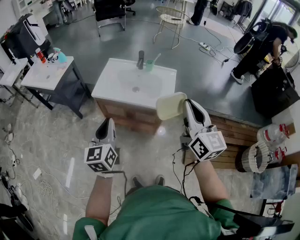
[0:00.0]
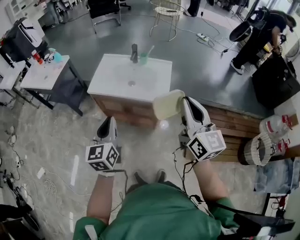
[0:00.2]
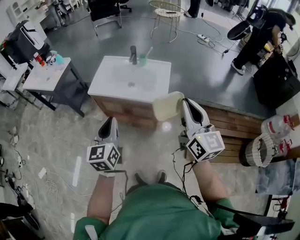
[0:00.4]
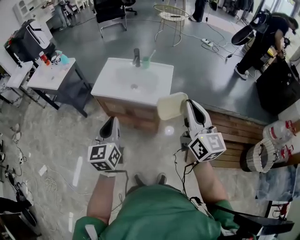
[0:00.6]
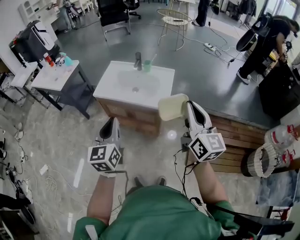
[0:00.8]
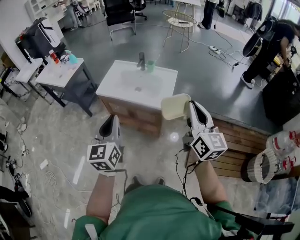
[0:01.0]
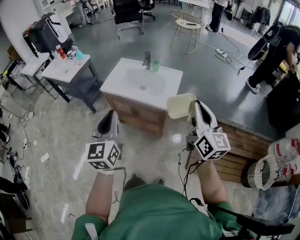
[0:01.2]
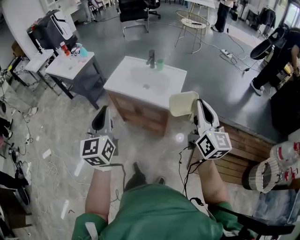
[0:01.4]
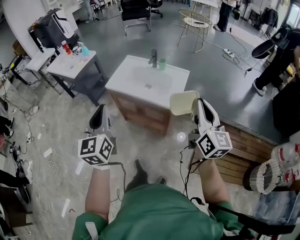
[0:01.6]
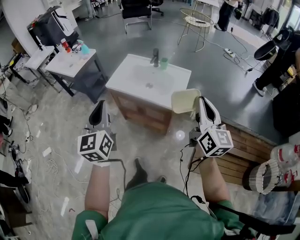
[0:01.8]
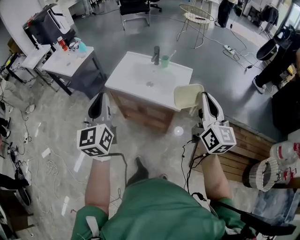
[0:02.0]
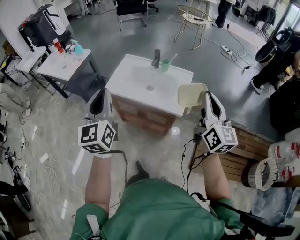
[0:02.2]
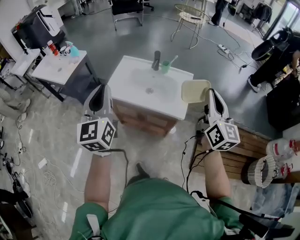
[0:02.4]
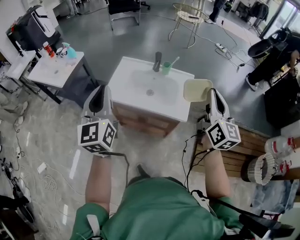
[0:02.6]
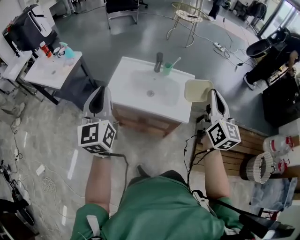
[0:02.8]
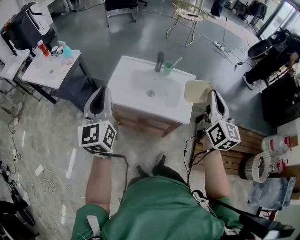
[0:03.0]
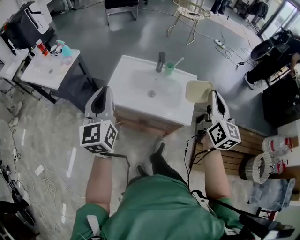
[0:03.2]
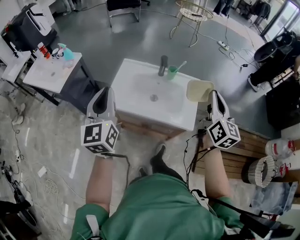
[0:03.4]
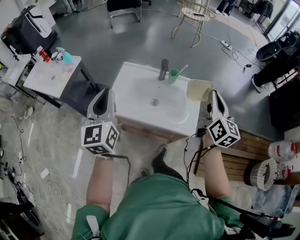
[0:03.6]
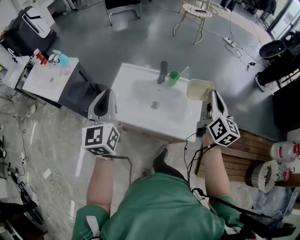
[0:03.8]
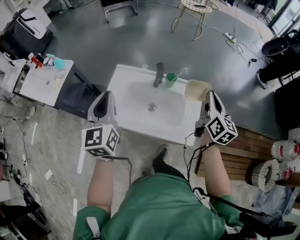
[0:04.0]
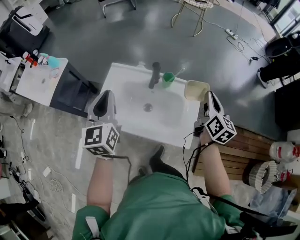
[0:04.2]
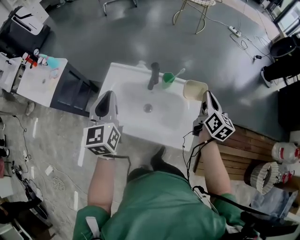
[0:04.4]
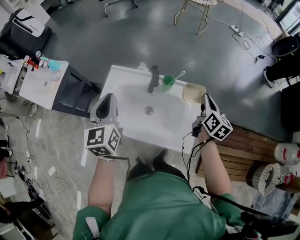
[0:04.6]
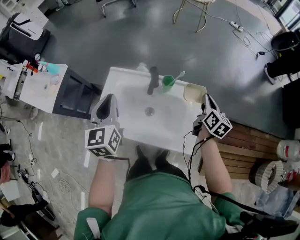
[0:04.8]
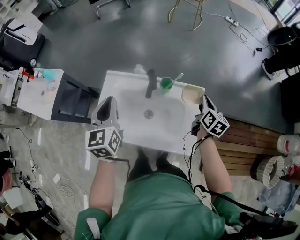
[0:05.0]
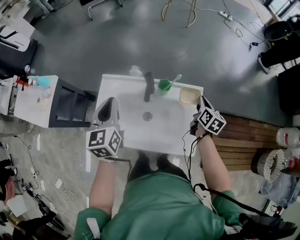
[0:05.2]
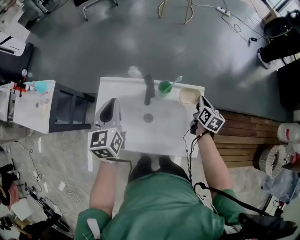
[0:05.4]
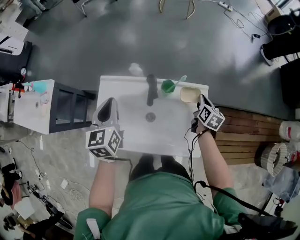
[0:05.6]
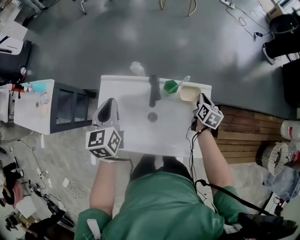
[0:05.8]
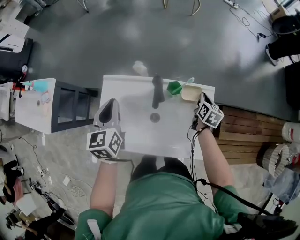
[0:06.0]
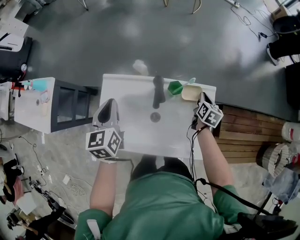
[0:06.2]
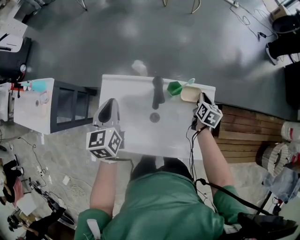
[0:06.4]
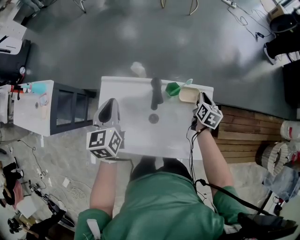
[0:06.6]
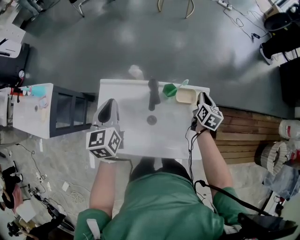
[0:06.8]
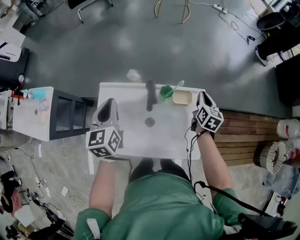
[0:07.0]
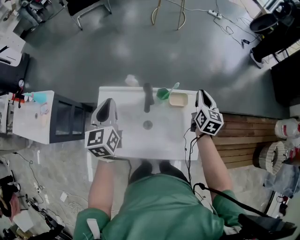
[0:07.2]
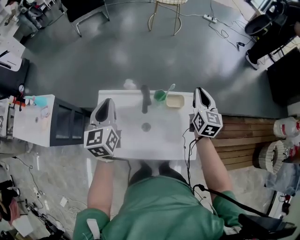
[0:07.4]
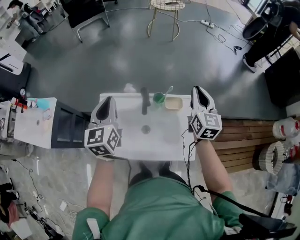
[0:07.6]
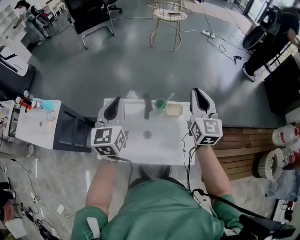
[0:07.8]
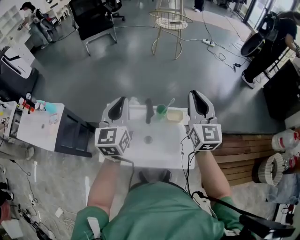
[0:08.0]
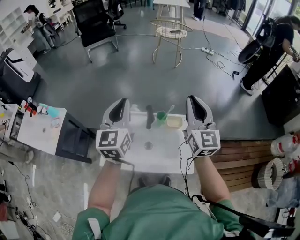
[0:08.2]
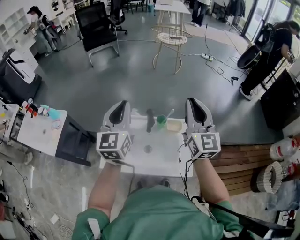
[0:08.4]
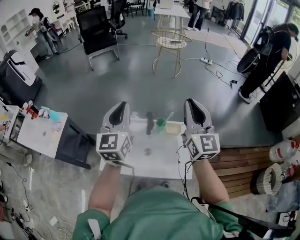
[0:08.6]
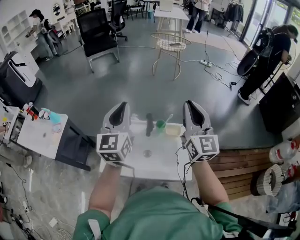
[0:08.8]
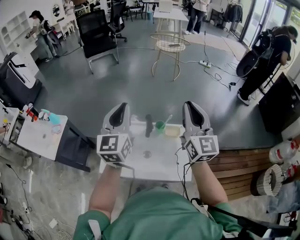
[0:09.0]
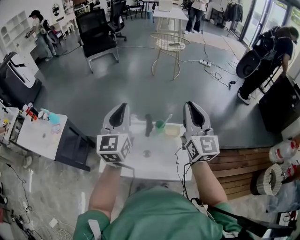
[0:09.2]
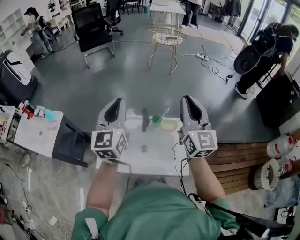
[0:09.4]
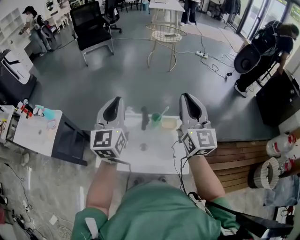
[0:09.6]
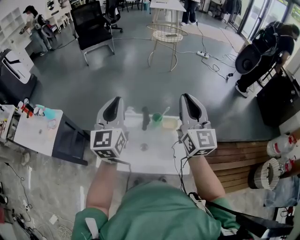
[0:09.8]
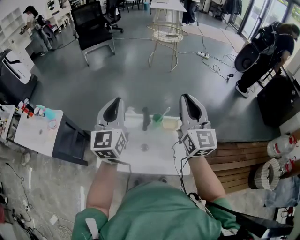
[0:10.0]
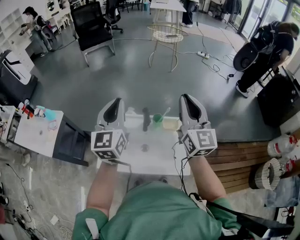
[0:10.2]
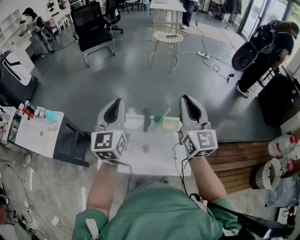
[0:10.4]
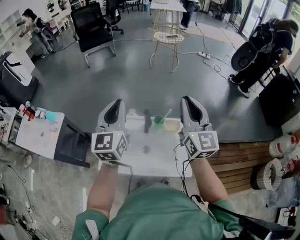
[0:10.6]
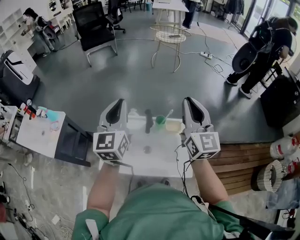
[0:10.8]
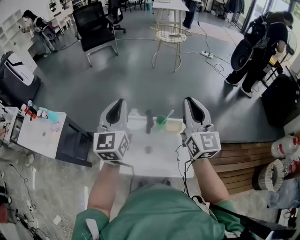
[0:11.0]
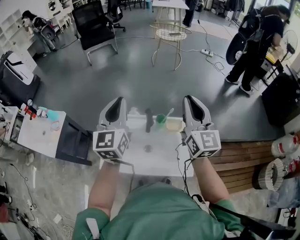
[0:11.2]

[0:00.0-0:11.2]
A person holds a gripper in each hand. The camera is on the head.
0:00.0 to 0:01.6: The right gripper heads to the right, covering approximately 15 cm. Meanwhile the left gripper goes about 15 cm upward, to the right and backward.
0:01.6 to 0:03.2: The two grippers go approximately 30 cm forward and to the left.
0:03.2 to 0:04.8: The left gripper is displaced forward by approximately 30 cm. The right gripper heads forward and downward, covering approximately 40 cm, and turns by about 30 degrees.
0:04.8 to 0:06.4: The left gripper travels forward and downward by approximately 15 cm; the right gripper heads downward and forward, covering approximately 20 cm, and swivels roughly 20 degrees.
0:06.4 to 0:08.0: The right gripper goes some 40 cm upward, and angles its fingers upward, by roughly 50 degrees. The left gripper travels upward by some 20 cm, and turns by approximately 30 degrees.
0:08.0 to 0:09.6: The grippers both shift upward by some 5 cm.
0:09.6 to 0:11.2: There are only small adjustments of the grippers.

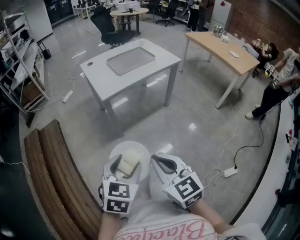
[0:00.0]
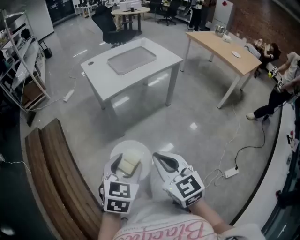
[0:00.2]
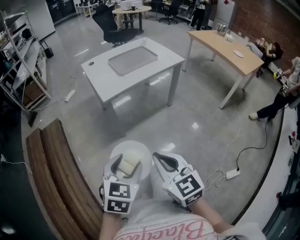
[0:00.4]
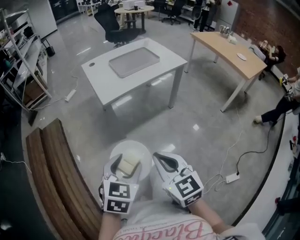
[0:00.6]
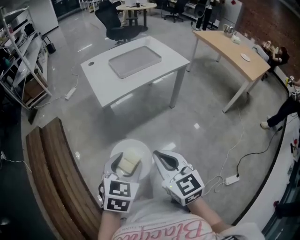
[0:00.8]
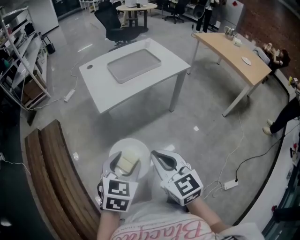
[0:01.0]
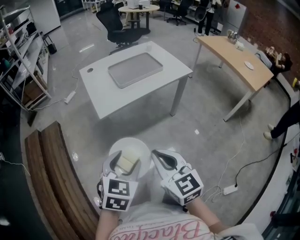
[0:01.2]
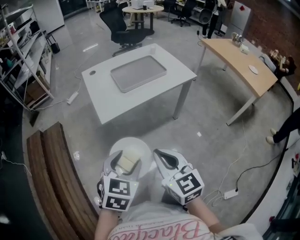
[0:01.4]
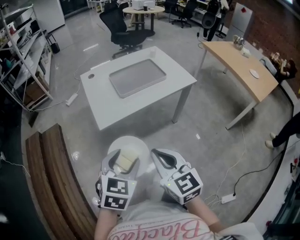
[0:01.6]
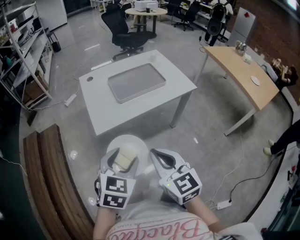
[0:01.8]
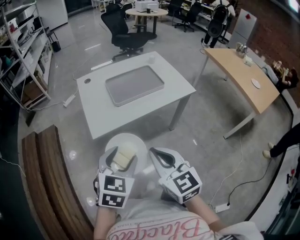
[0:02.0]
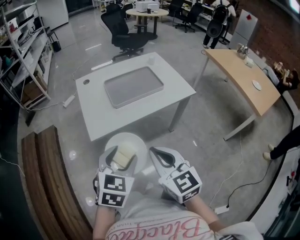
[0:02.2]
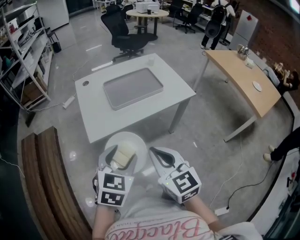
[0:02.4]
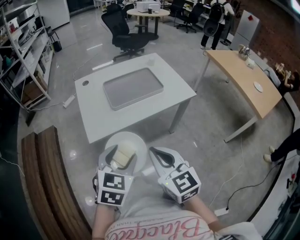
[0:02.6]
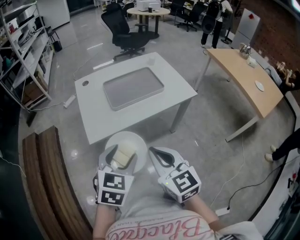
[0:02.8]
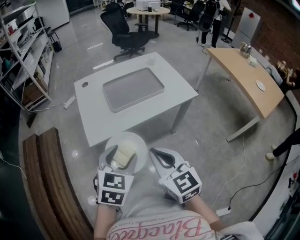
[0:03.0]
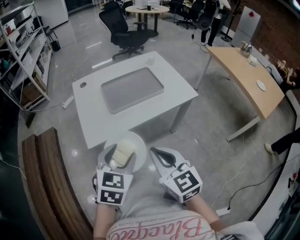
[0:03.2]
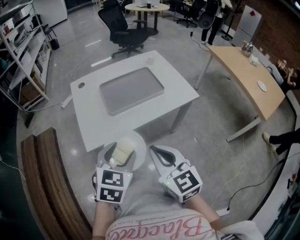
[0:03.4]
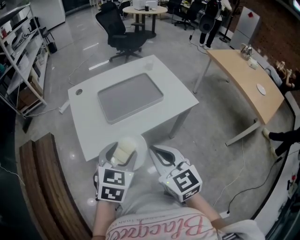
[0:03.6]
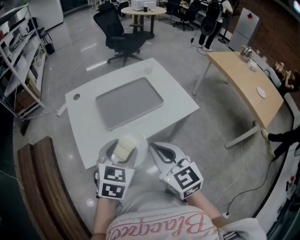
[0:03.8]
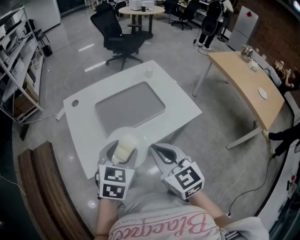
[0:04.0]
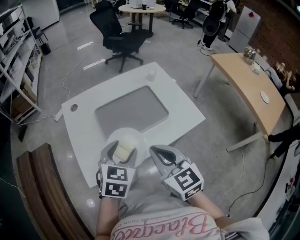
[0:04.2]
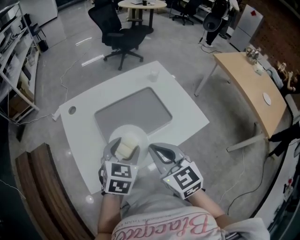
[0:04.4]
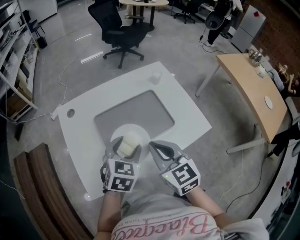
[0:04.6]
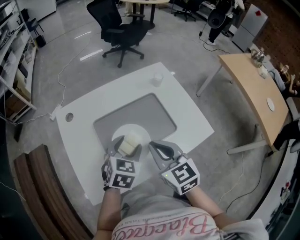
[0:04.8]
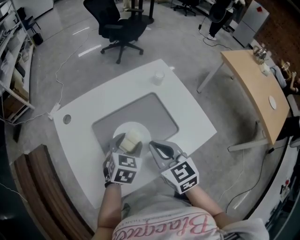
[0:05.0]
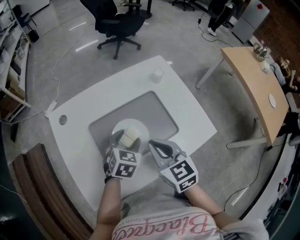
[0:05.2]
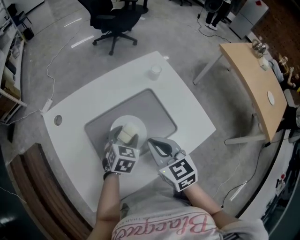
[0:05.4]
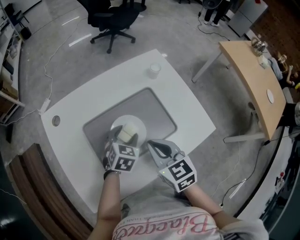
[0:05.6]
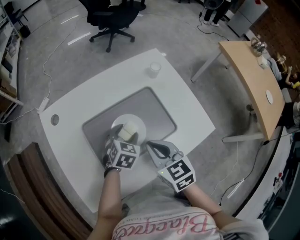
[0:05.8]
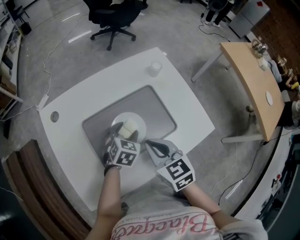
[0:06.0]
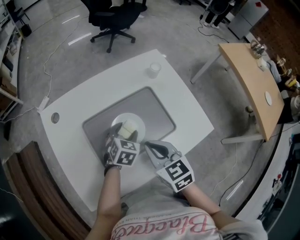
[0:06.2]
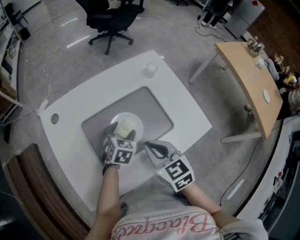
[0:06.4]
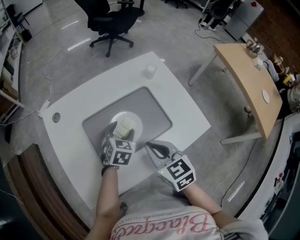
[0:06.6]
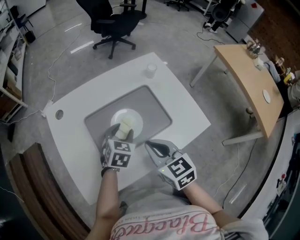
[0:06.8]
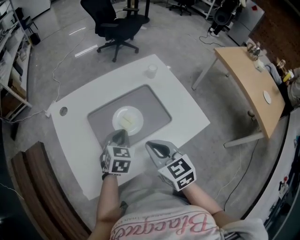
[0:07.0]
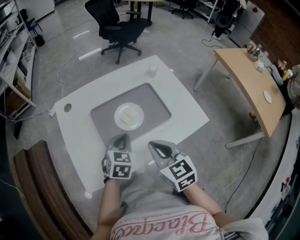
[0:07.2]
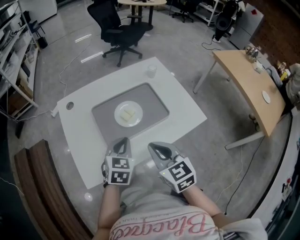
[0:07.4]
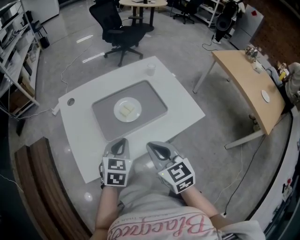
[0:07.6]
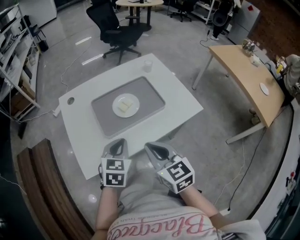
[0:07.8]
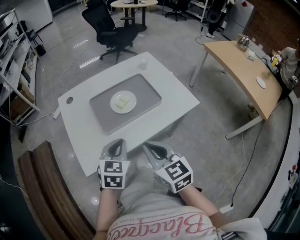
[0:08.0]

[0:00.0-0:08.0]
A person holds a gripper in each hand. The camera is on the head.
0:00.0 to 0:01.6: Both grippers travel together forward, approximately 20 cm.
0:01.6 to 0:03.2: The grippers both shift forward and to the right by roughly 10 cm.
0:03.2 to 0:04.8: Both grippers travel together forward, about 25 cm.
0:04.8 to 0:06.4: The right gripper is displaced downward by approximately 5 cm. Meanwhile the left gripper heads downward and forward, covering about 15 cm.
0:06.4 to 0:08.0: The left gripper heads backward and upward, covering about 25 cm, and closes its fingers; the right gripper is displaced backward by roughly 15 cm.

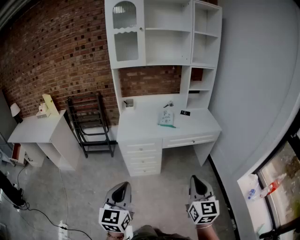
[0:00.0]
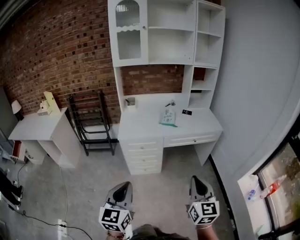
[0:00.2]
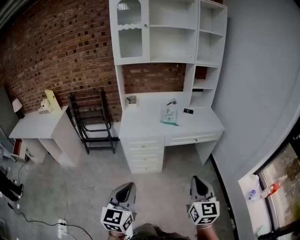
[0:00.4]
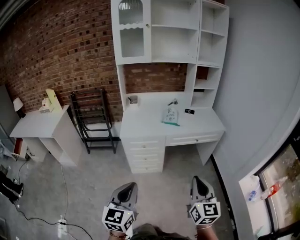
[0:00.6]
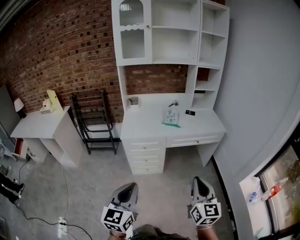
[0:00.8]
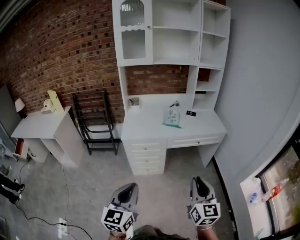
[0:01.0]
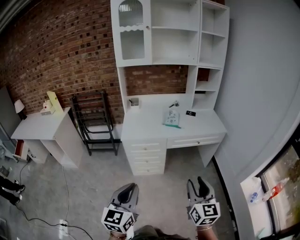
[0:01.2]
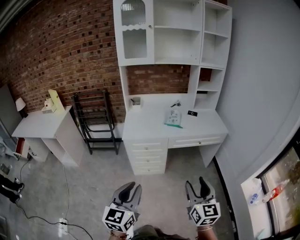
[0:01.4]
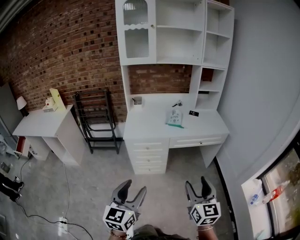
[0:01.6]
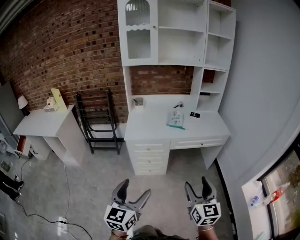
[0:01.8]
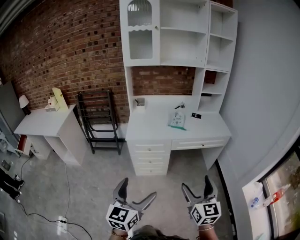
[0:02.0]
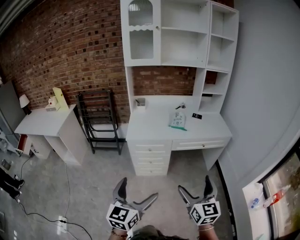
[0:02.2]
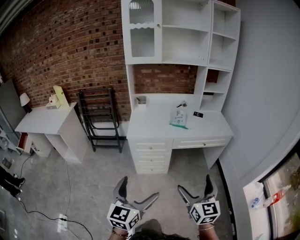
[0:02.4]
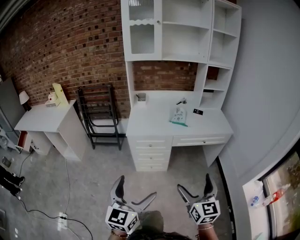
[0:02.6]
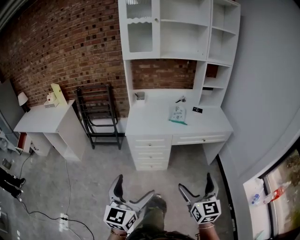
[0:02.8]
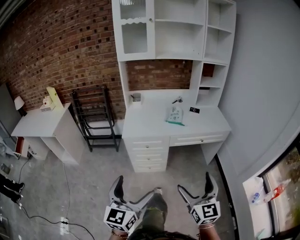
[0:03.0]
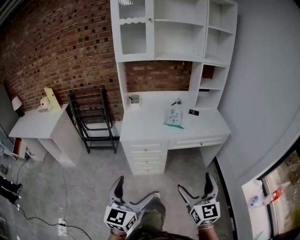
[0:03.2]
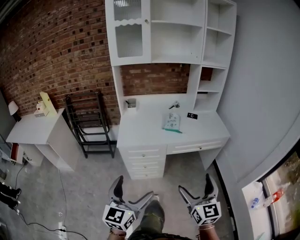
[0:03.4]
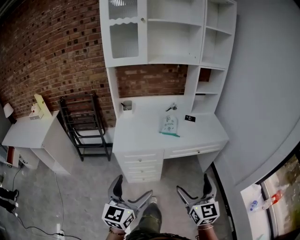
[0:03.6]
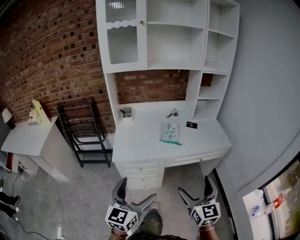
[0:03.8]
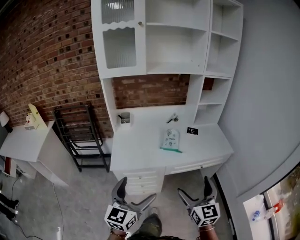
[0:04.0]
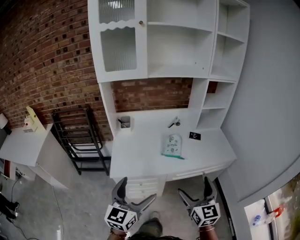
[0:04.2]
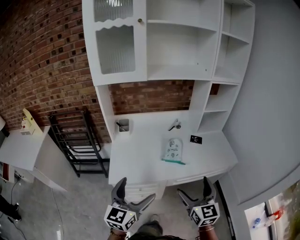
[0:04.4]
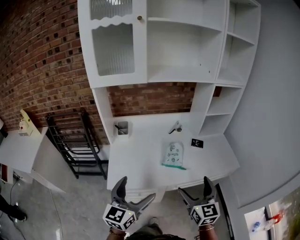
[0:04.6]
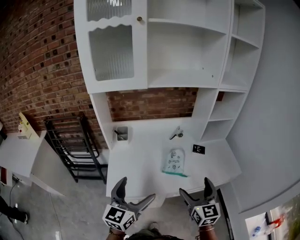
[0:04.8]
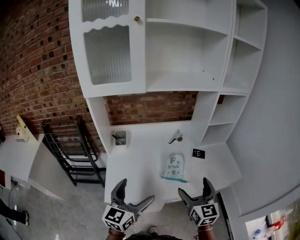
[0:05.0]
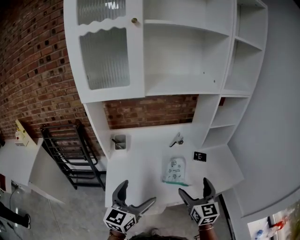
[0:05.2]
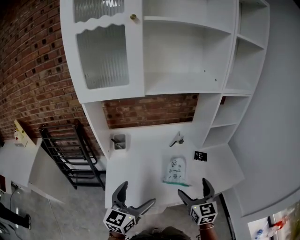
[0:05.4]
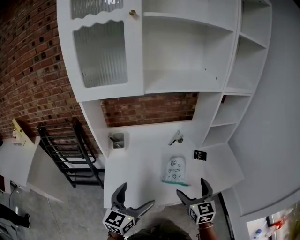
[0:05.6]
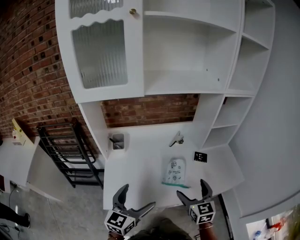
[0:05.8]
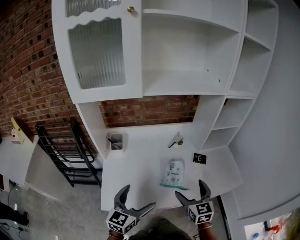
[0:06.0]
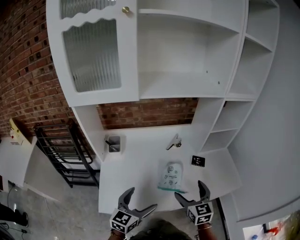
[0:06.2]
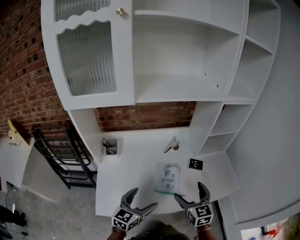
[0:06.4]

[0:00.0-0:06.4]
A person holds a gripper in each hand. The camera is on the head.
0:00.0 to 0:01.6: The right gripper opens. Meanwhile the left gripper opens.
0:01.6 to 0:03.2: The two grippers go about 5 cm forward. The left gripper opens up. Meanwhile the right gripper opens its fingers.
0:03.2 to 0:04.8: The two grippers travel together, forward, approximately 40 cm.
0:04.8 to 0:06.4: The left gripper shifts approximately 20 cm forward and downward; the right gripper moves forward, approximately 15 cm.
